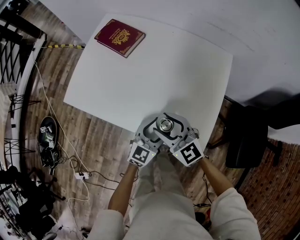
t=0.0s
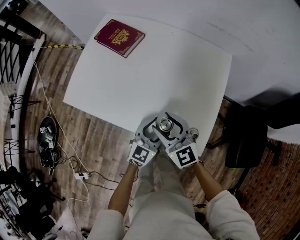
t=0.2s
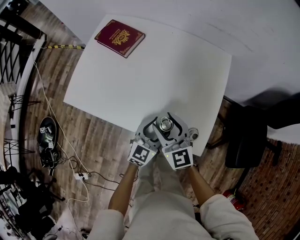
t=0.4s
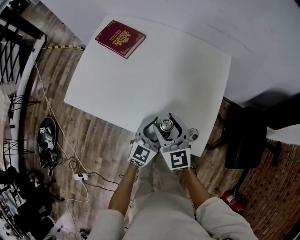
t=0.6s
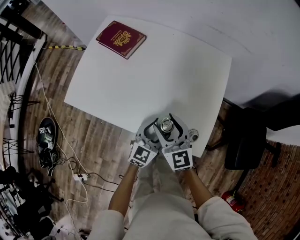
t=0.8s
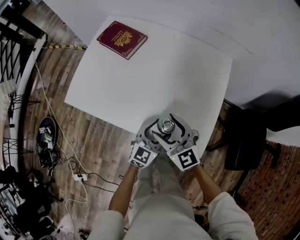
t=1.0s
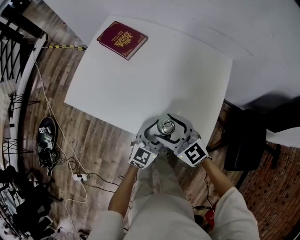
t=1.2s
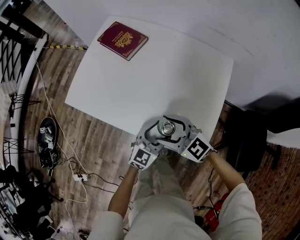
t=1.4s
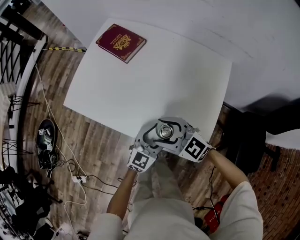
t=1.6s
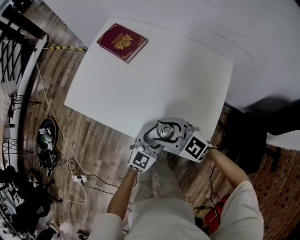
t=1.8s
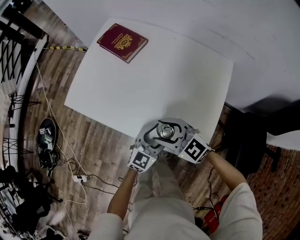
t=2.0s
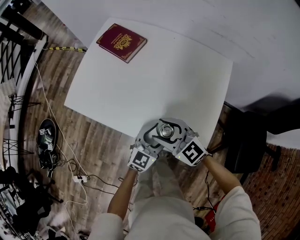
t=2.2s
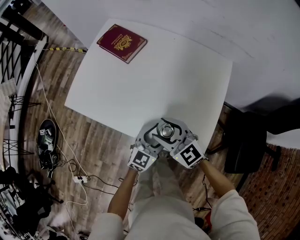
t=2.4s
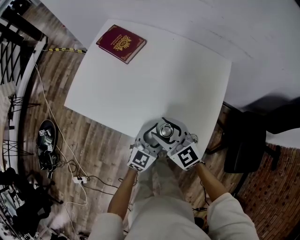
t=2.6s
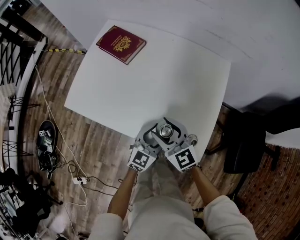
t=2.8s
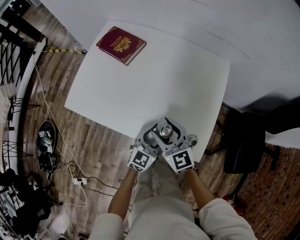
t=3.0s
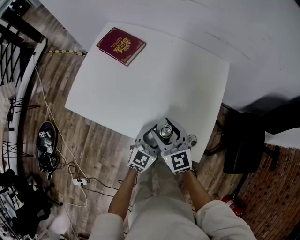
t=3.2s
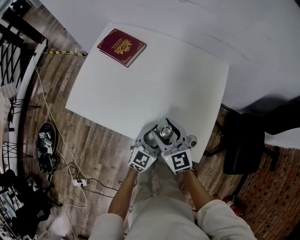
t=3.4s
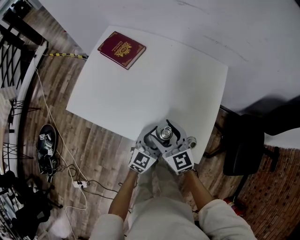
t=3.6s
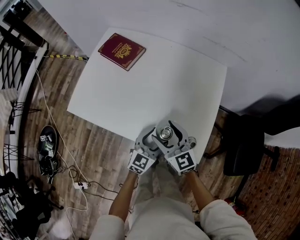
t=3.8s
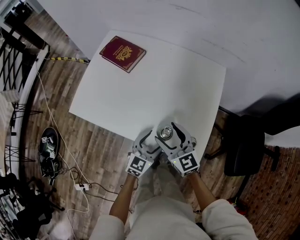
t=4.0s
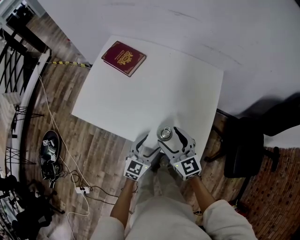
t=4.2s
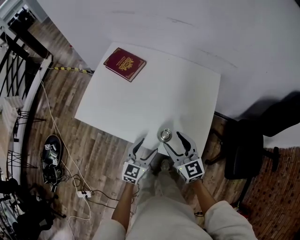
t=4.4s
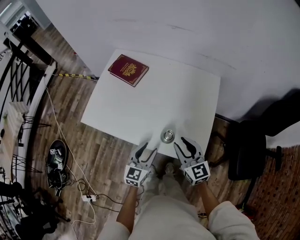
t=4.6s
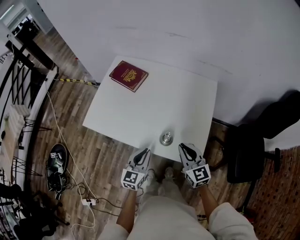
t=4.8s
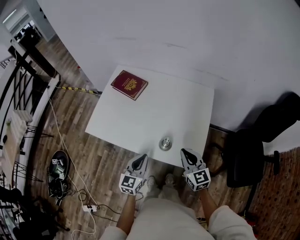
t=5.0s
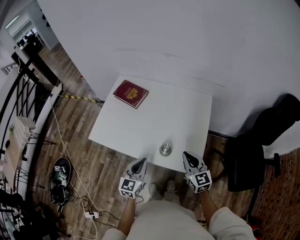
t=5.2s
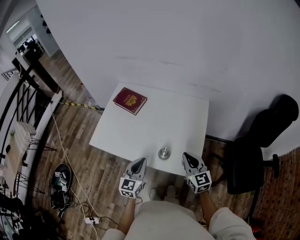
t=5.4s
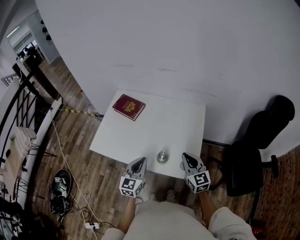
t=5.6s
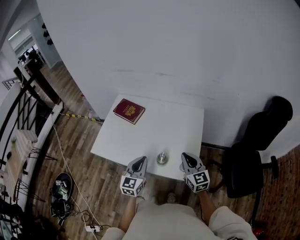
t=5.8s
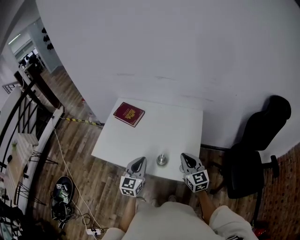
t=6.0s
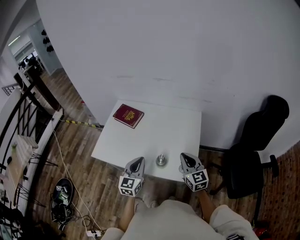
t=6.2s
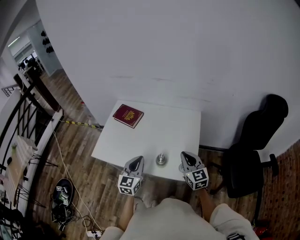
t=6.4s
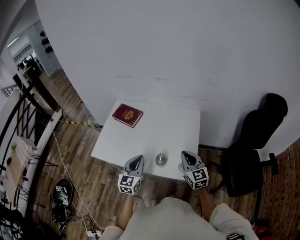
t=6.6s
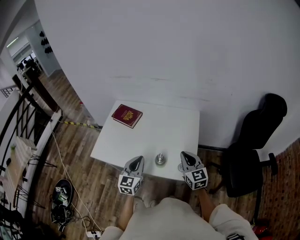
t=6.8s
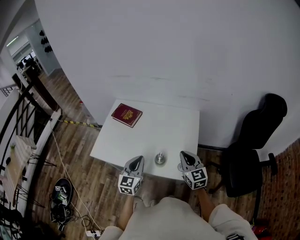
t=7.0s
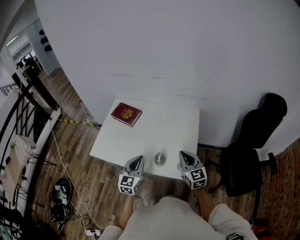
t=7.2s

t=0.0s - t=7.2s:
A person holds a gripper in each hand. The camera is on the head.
t=1.4s - t=2.8s: The right gripper turns by approximately 20 degrees.
t=2.8s - t=4.4s: The right gripper heads to the right, covering about 5 cm. Meanwhile the left gripper shifts about 5 cm to the left.
t=4.4s - t=5.8s: The right gripper heads upward and to the right, covering approximately 15 cm, and closes. Meanwhile the left gripper travels upward by roughly 15 cm, and closes.
t=5.8s - t=7.2s: The grippers stay close to where they were, moving slightly.

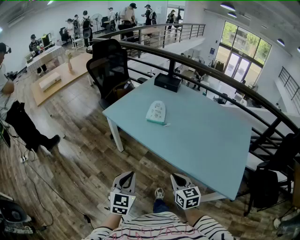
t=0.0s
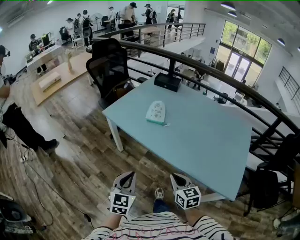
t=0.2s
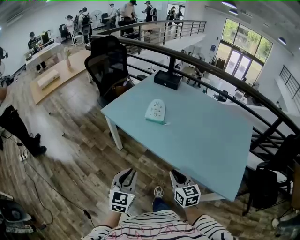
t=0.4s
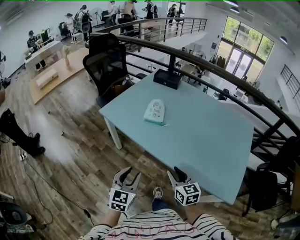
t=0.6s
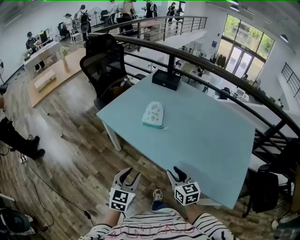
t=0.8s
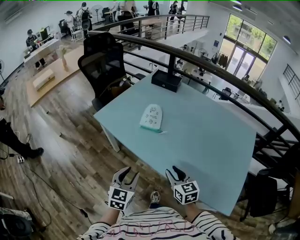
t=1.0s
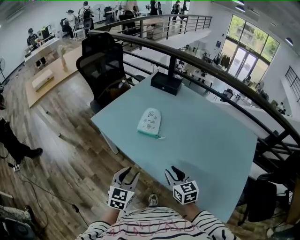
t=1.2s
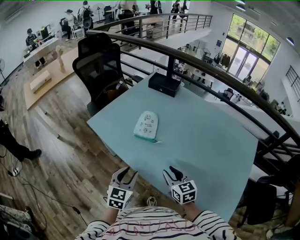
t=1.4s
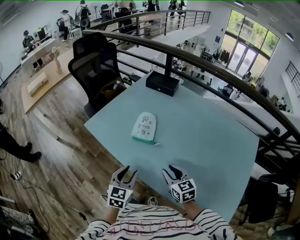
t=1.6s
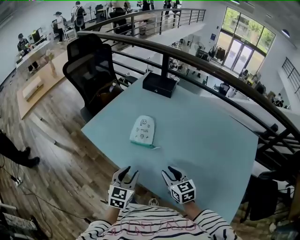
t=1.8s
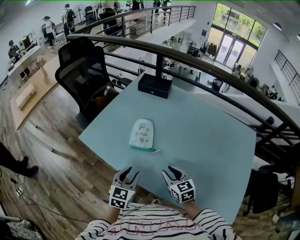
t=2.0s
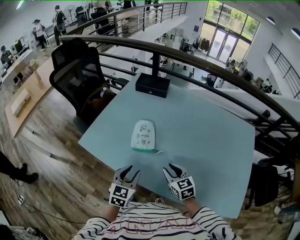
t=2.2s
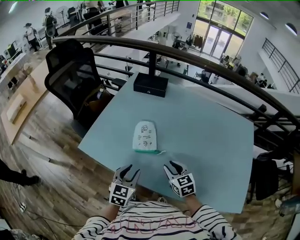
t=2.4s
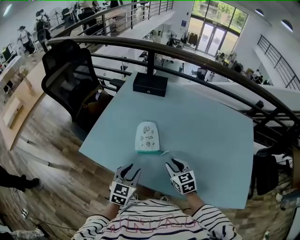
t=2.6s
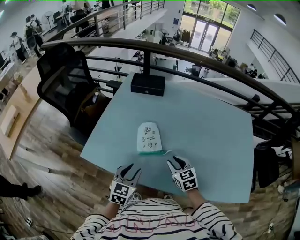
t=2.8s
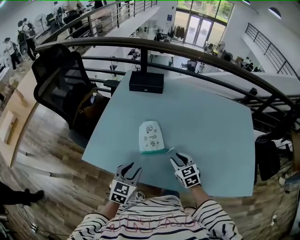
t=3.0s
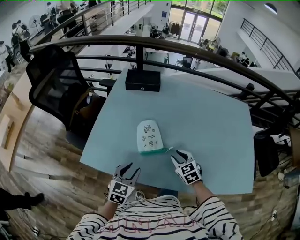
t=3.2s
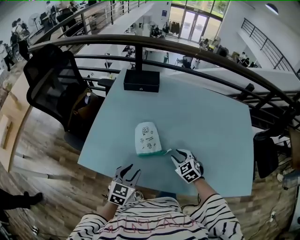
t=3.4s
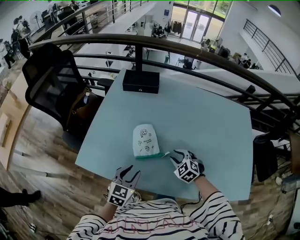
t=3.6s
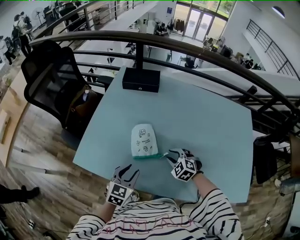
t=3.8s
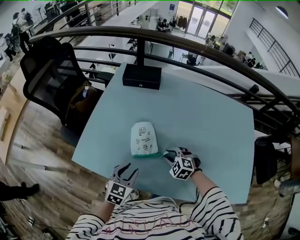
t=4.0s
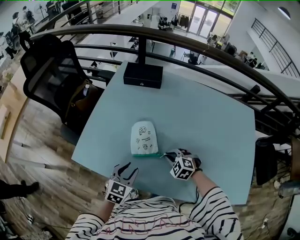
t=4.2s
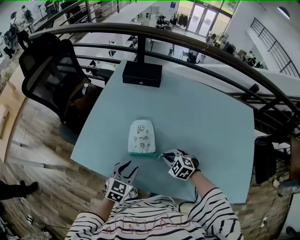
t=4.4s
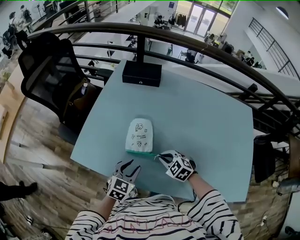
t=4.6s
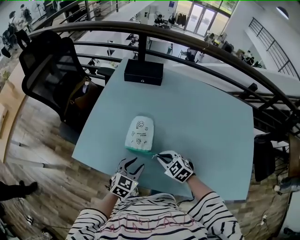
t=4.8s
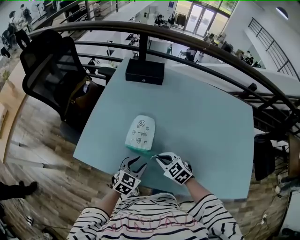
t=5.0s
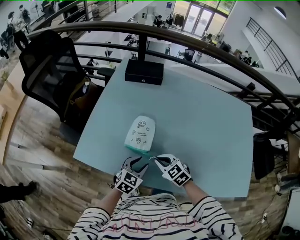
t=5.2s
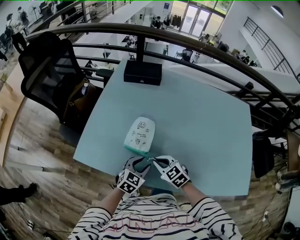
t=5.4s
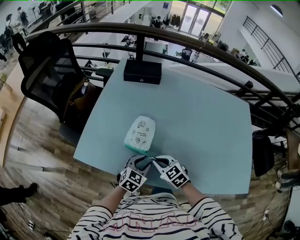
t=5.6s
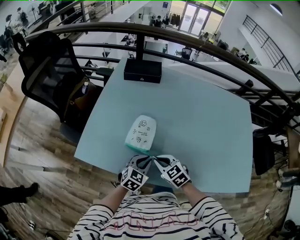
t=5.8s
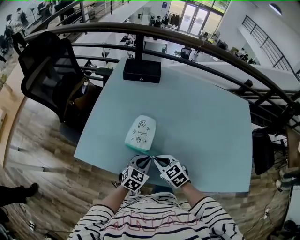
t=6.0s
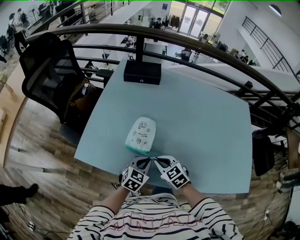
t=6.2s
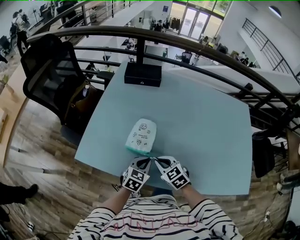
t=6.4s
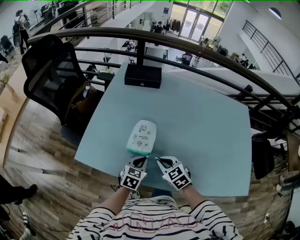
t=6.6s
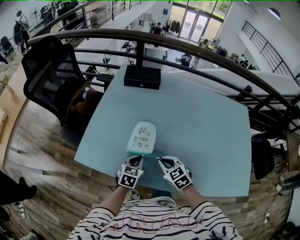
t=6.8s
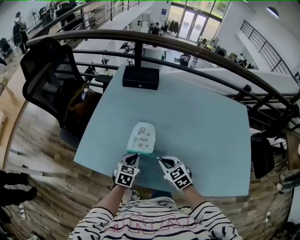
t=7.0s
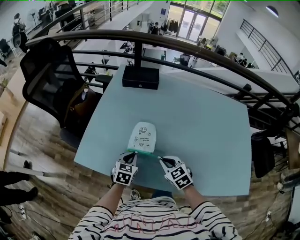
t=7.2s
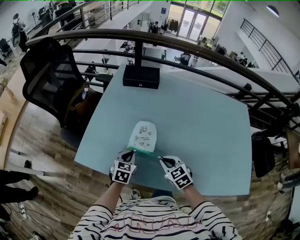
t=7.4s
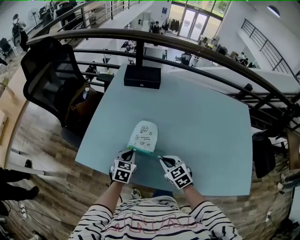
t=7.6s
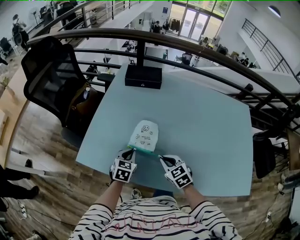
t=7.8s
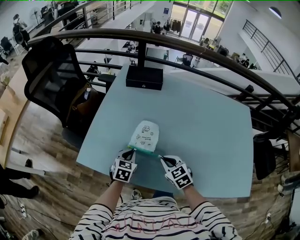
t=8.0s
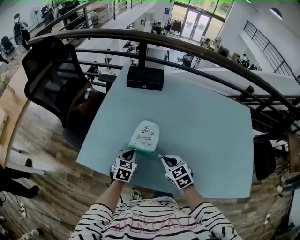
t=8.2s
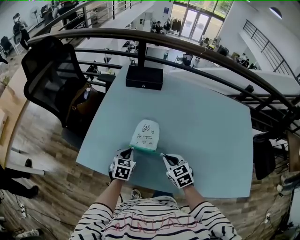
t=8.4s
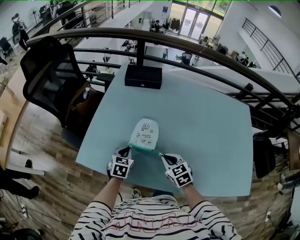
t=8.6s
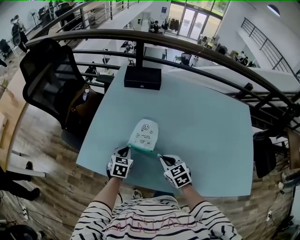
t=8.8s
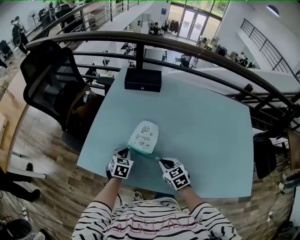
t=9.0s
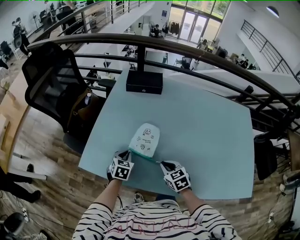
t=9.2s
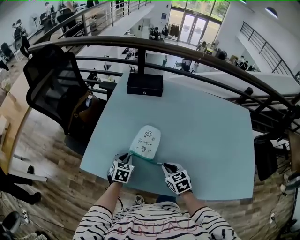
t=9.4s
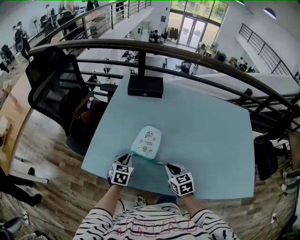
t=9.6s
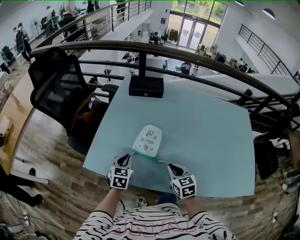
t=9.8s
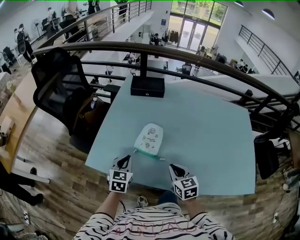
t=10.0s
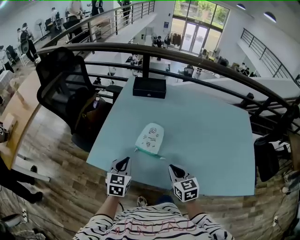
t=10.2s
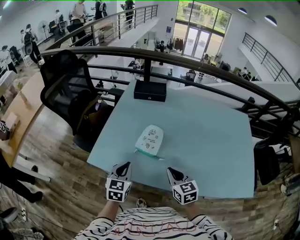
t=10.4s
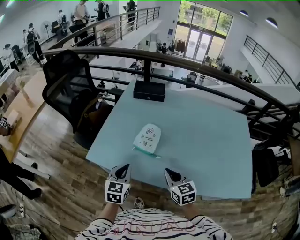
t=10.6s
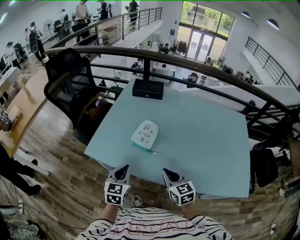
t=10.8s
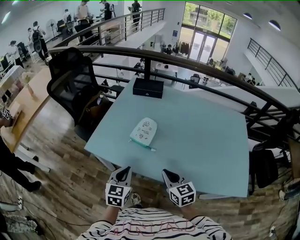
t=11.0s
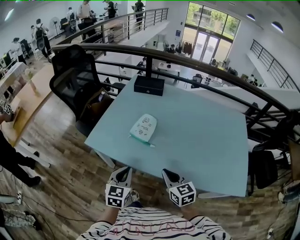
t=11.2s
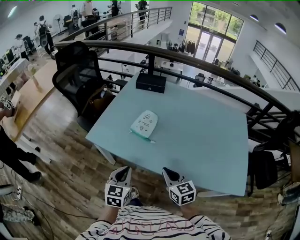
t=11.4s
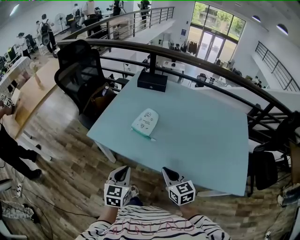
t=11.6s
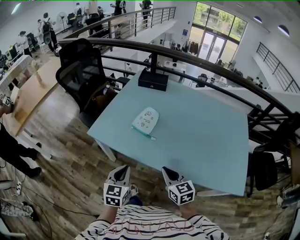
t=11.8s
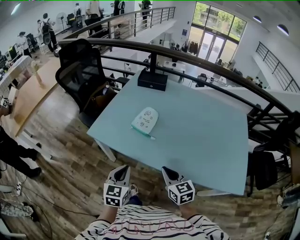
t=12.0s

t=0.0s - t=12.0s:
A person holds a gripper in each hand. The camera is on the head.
t=0.0s - t=1.6s: The right gripper goes roughly 25 cm forward, and opens, while the left gripper shifts some 25 cm forward and to the right, and opens its fingers.
t=1.6s - t=3.0s: The right gripper moves some 15 cm, and turns by approximately 20 degrees, while the left gripper shifts by roughly 20 cm, and turns by approximately 30 degrees.
t=3.0s - t=4.4s: The right gripper travels downward by approximately 5 cm, turns by some 40 degrees, and closes its fingers, while the left gripper ends up about 5 cm from where it was.
t=4.4s - t=6.0s: The left gripper moves some 5 cm. Meanwhile the right gripper shifts approximately 10 cm to the left and backward, and turns by about 30 degrees.
t=6.0s - t=7.6s: The left gripper is displaced to the left and forward by roughly 10 cm.
t=7.6s - t=9.0s: The left gripper changes place by approximately 5 cm.
t=9.0s - t=10.4s: The grippers both shift upward and backward by some 15 cm. The right gripper rotates roughly 20 degrees.
t=10.4s - t=12.0s: Both grippers move backward, roughly 15 cm.

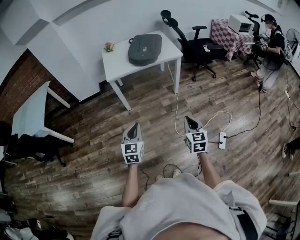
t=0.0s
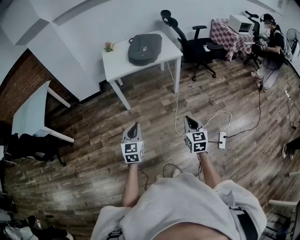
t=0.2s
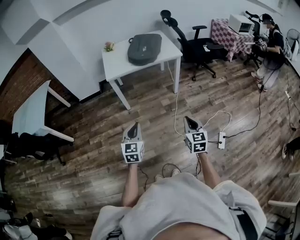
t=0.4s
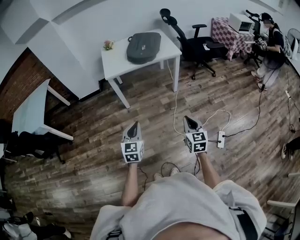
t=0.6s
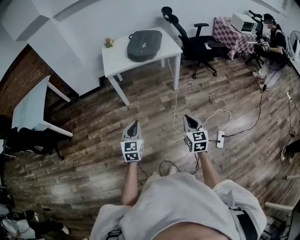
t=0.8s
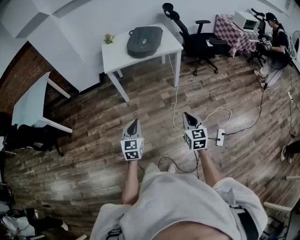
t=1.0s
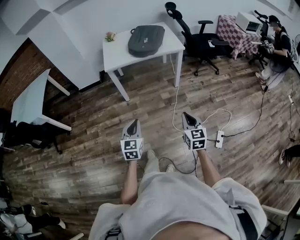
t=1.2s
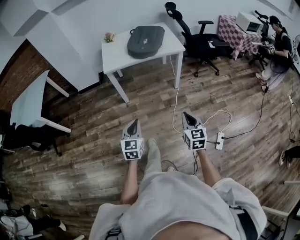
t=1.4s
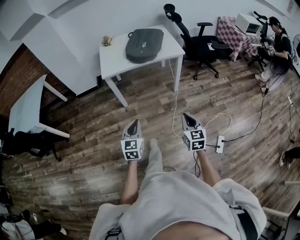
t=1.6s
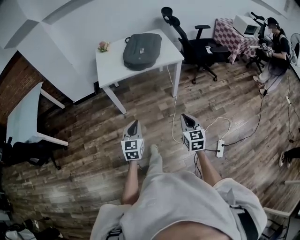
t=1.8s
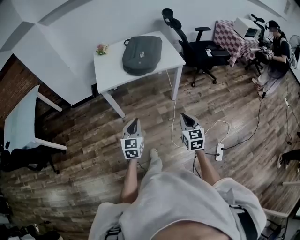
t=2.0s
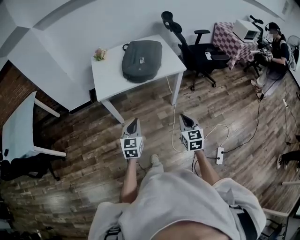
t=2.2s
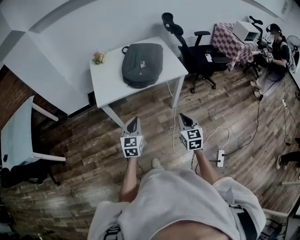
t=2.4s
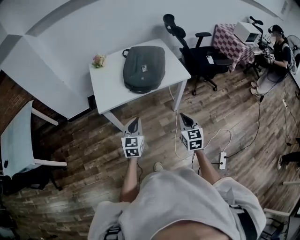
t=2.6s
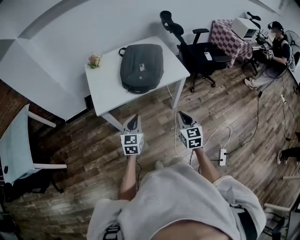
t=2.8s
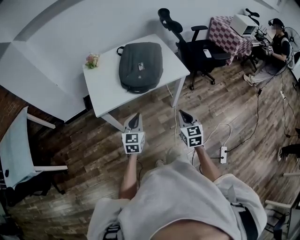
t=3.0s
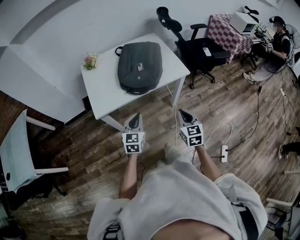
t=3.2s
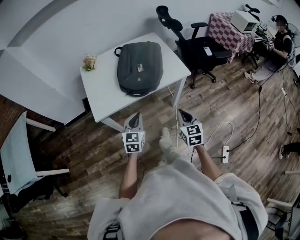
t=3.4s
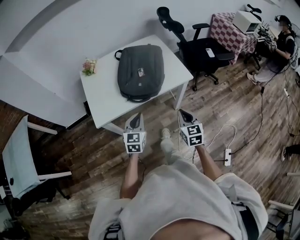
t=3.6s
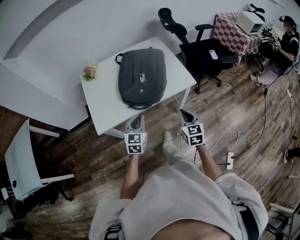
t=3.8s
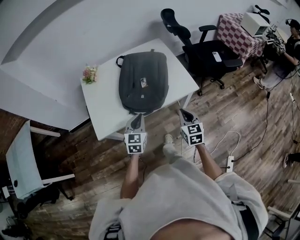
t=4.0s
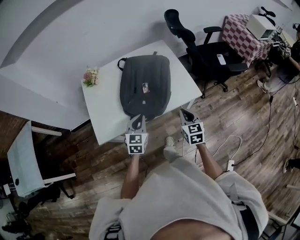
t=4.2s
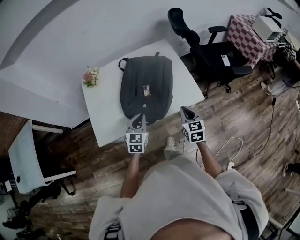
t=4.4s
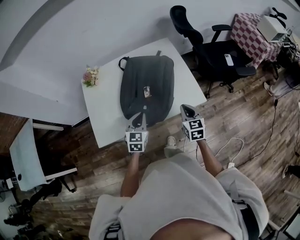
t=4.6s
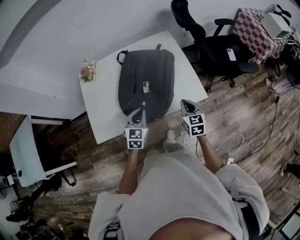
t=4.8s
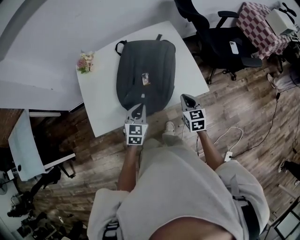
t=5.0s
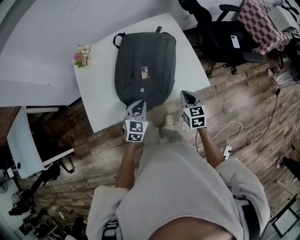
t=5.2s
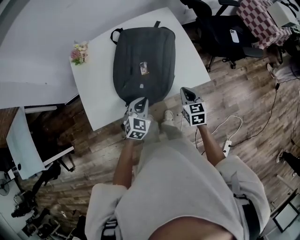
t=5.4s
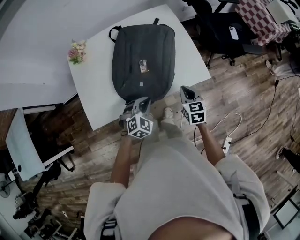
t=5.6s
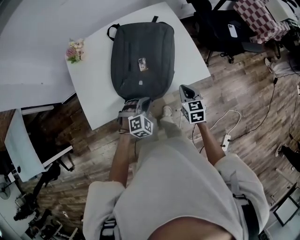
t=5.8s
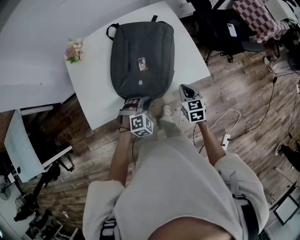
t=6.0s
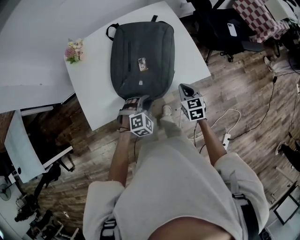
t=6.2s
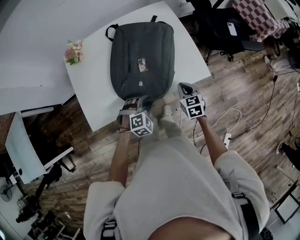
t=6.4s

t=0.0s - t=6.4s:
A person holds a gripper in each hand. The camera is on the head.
t=0.0s - t=1.6s: The two grippers go some 10 cm forward.
t=1.6s - t=3.2s: The grippers both shift forward by approximately 35 cm.
t=3.2s - t=4.8s: The two grippers go about 30 cm forward.
t=4.8s - t=6.4s: The two grippers go some 10 cm downward. The left gripper rolls clockwise, seen from behind, by approximately 50 degrees, and opens.
